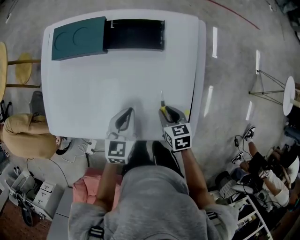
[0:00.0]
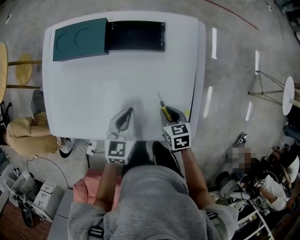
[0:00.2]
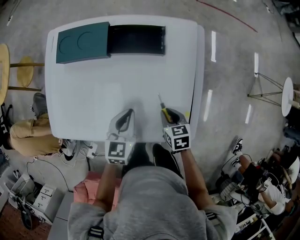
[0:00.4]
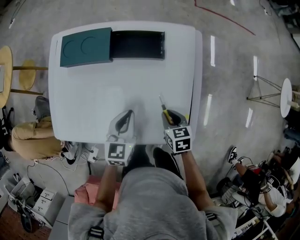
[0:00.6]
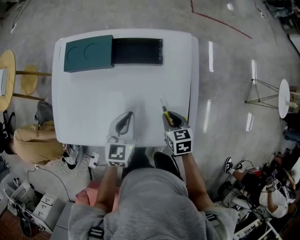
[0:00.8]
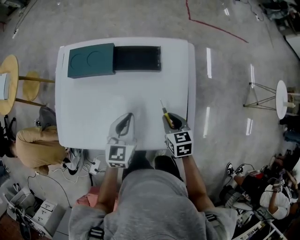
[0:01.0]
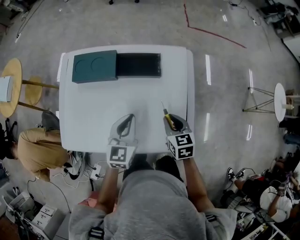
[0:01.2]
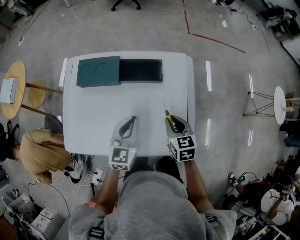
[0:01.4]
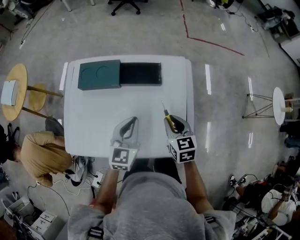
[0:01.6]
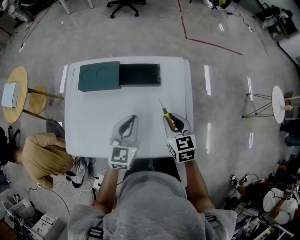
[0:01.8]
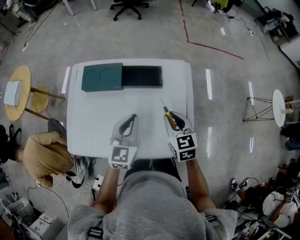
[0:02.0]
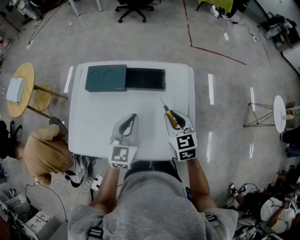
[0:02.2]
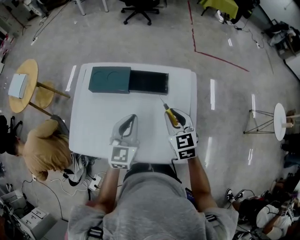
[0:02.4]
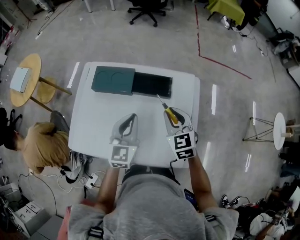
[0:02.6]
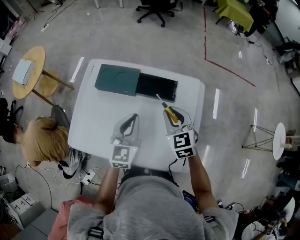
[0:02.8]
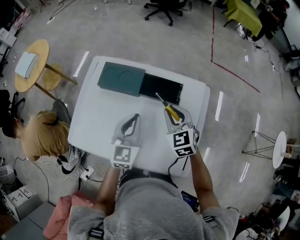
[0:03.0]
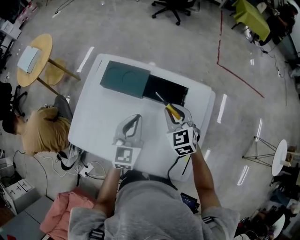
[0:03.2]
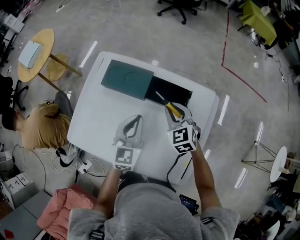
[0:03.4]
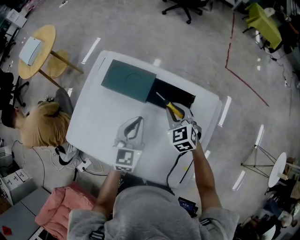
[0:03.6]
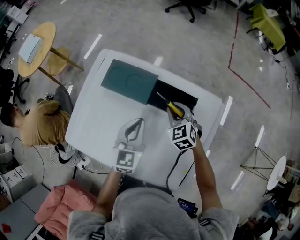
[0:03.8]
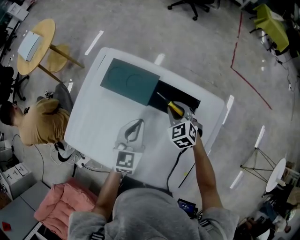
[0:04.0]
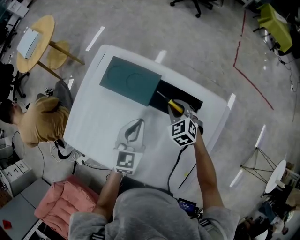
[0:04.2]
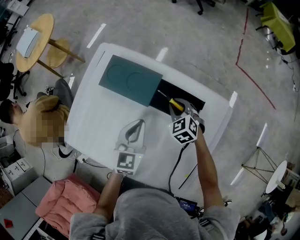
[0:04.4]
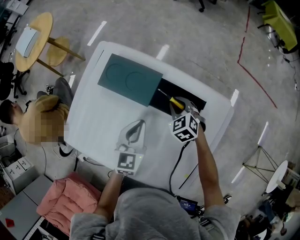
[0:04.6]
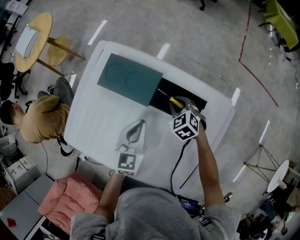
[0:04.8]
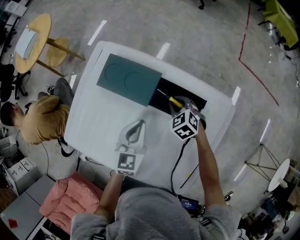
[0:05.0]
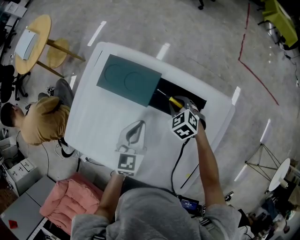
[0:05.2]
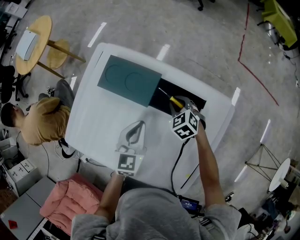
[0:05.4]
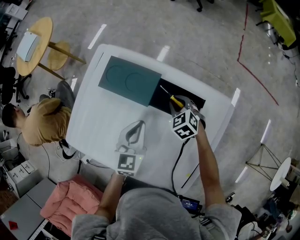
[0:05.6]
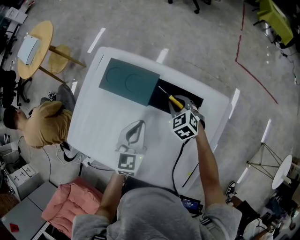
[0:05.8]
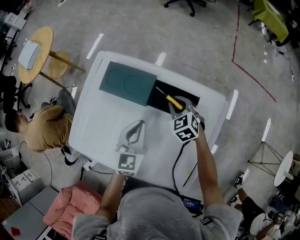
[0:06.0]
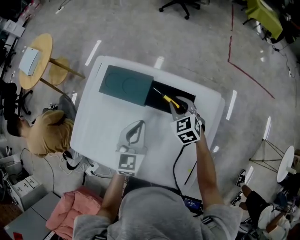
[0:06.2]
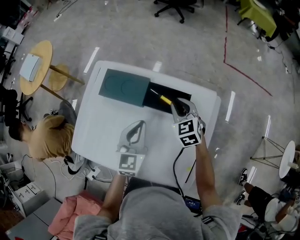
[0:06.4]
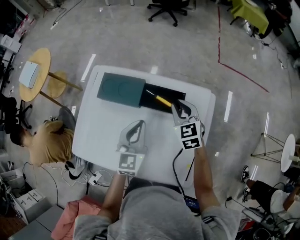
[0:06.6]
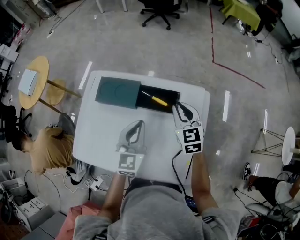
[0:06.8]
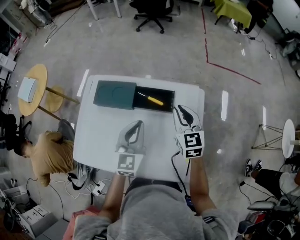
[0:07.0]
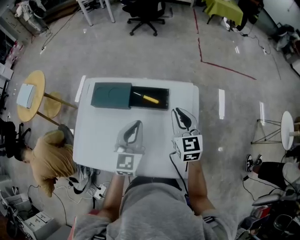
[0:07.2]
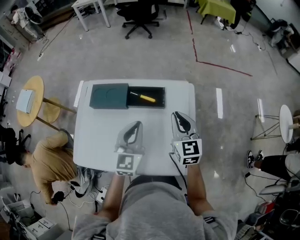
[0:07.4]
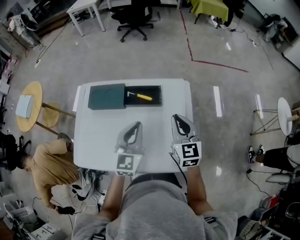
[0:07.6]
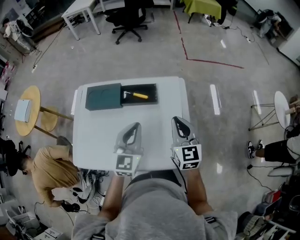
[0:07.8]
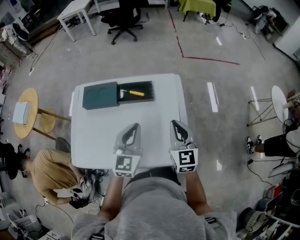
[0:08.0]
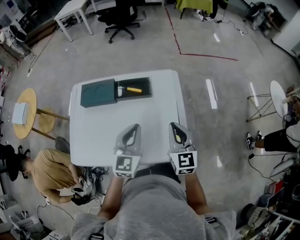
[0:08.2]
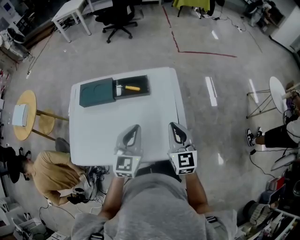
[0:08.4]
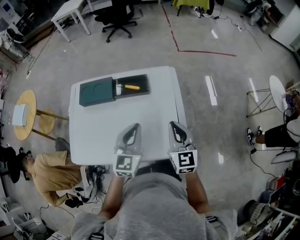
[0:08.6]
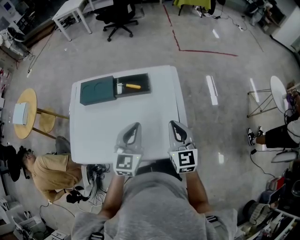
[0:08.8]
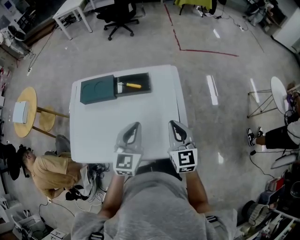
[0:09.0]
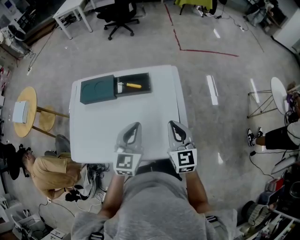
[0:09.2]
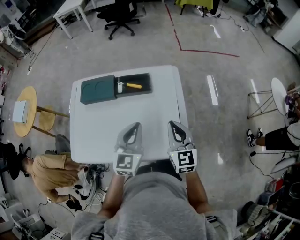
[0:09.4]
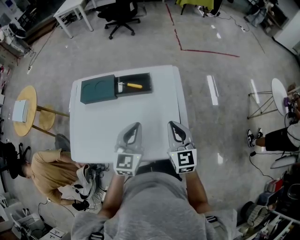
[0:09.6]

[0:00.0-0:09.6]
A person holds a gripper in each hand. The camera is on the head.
0:00.0 to 0:01.6: The two grippers go approximately 15 cm upward. The right gripper rotates roughly 20 degrees.
0:01.6 to 0:03.2: The right gripper travels forward and to the left by roughly 15 cm, and rotates about 40 degrees. Meanwhile the left gripper travels forward and to the left by roughly 10 cm.
0:03.2 to 0:04.8: The right gripper goes roughly 20 cm downward and forward, and swivels about 30 degrees. Meanwhile the left gripper is displaced downward and forward by roughly 15 cm.
0:04.8 to 0:06.4: The right gripper goes some 15 cm upward, and turns by about 30 degrees. Meanwhile the left gripper shifts roughly 10 cm upward.
0:06.4 to 0:08.0: The right gripper shifts some 30 cm backward, upward and to the right, and turns by about 40 degrees. The left gripper moves backward, to the right and upward, about 20 cm, and turns by approximately 20 degrees.
0:08.0 to 0:09.6: There are only small adjustments of the grippers.

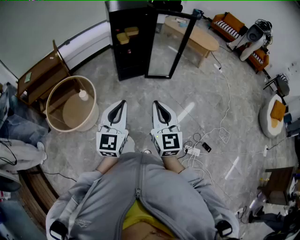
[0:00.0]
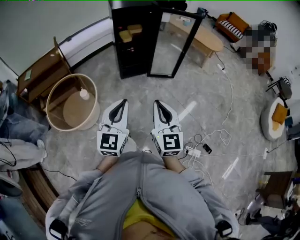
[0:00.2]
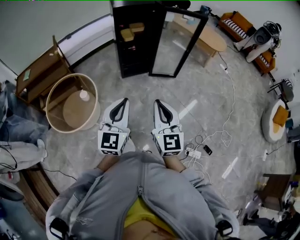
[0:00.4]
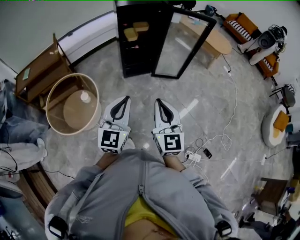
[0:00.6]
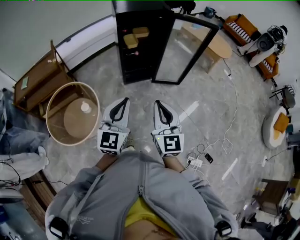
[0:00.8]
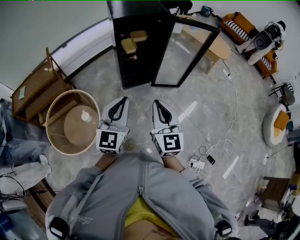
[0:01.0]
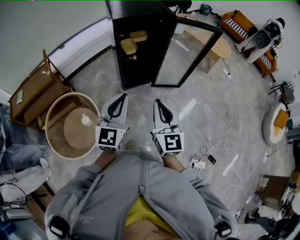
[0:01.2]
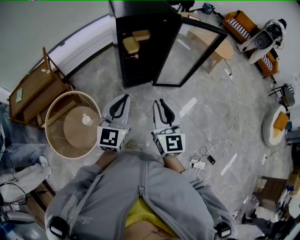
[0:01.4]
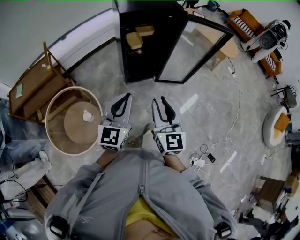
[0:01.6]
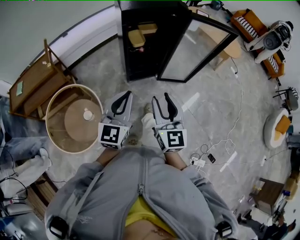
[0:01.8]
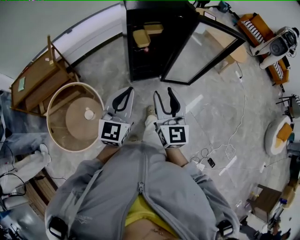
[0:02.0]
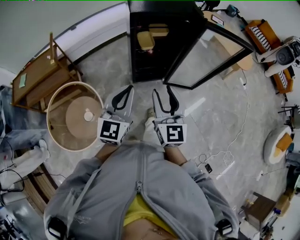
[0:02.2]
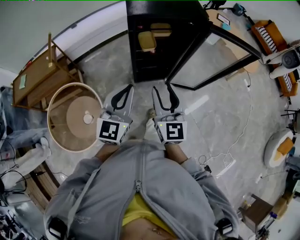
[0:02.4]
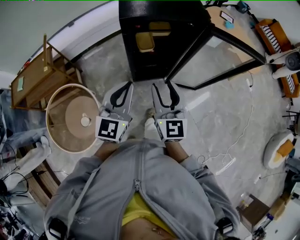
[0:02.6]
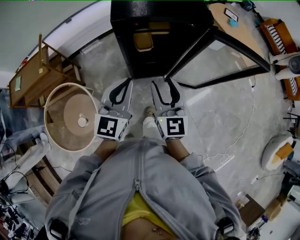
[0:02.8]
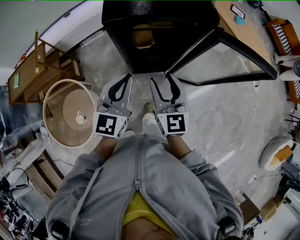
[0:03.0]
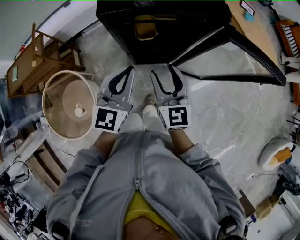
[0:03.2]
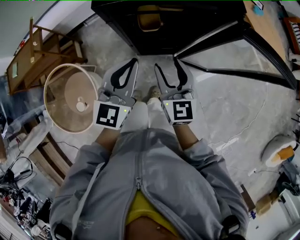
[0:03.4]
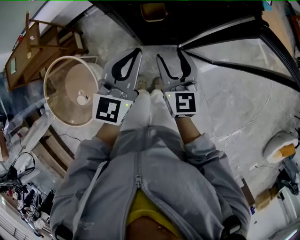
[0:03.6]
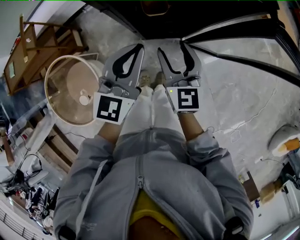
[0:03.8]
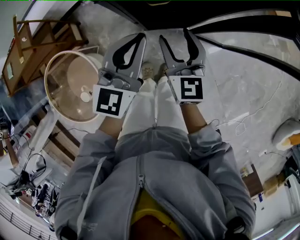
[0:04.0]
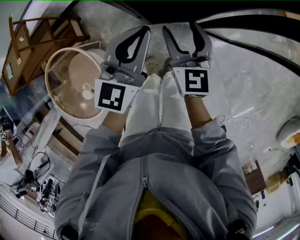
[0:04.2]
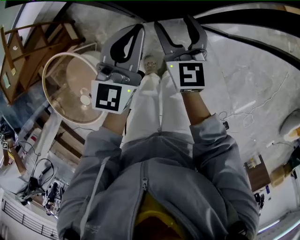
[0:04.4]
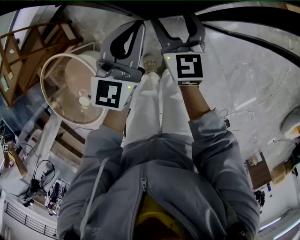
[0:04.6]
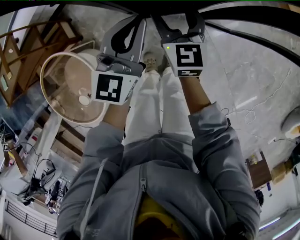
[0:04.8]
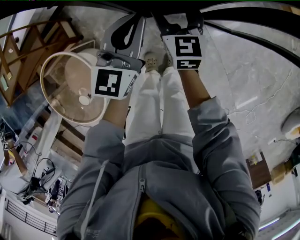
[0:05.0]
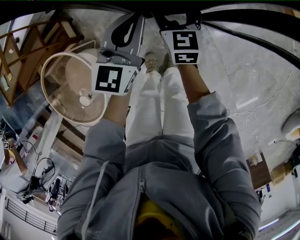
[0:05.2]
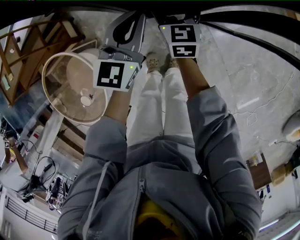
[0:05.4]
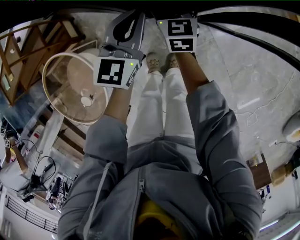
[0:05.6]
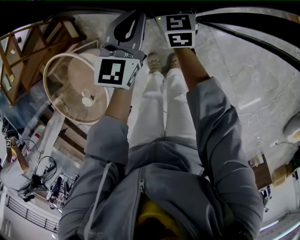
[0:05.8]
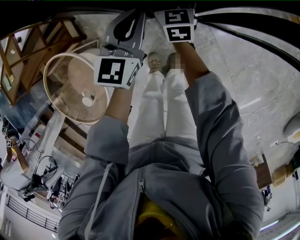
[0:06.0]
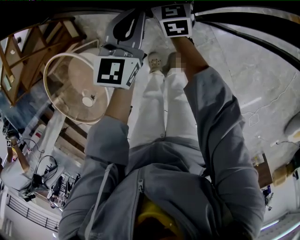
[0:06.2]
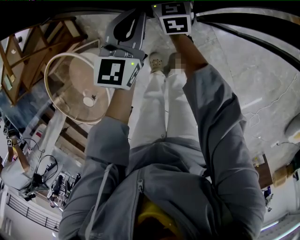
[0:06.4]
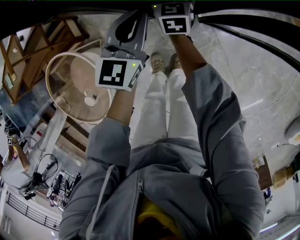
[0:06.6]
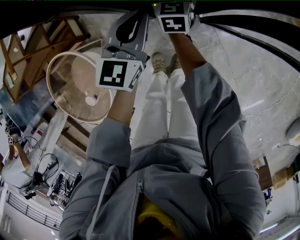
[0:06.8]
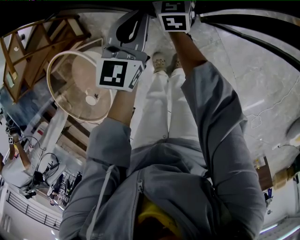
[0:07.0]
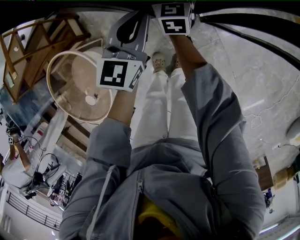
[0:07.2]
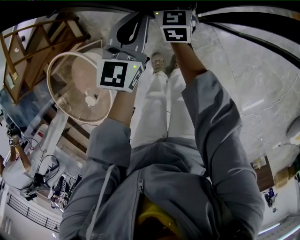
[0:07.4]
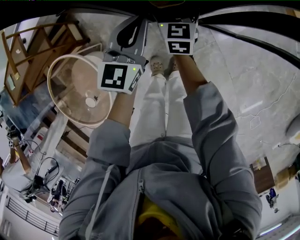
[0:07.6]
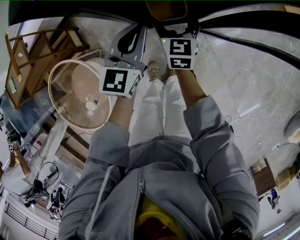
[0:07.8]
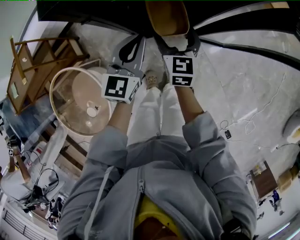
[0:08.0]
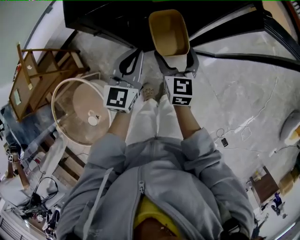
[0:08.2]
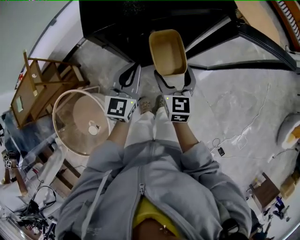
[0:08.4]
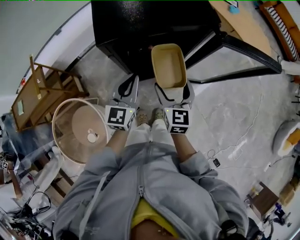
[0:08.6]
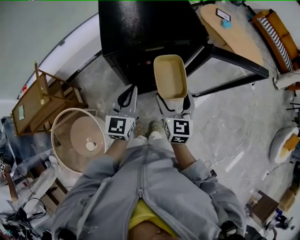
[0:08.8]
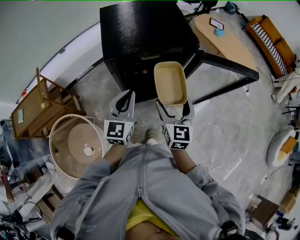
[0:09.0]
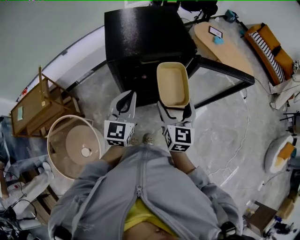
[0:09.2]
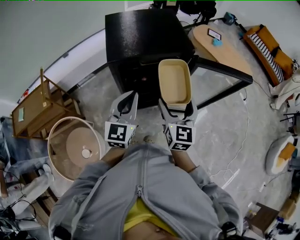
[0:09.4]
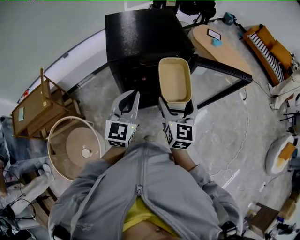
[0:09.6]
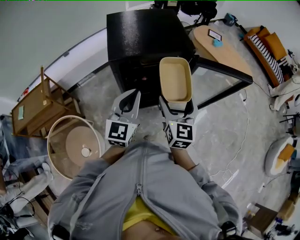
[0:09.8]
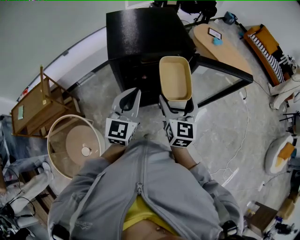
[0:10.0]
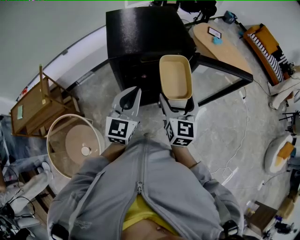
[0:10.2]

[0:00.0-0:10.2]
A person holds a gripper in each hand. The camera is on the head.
0:00.0 to 0:01.4: The two grippers go about 35 cm forward.
0:01.4 to 0:03.0: Both grippers travel together forward, about 35 cm.
0:03.0 to 0:04.4: The grippers both shift downward and forward by about 25 cm.
0:04.4 to 0:05.8: The right gripper shifts roughly 15 cm downward and forward, and opens up; the left gripper goes about 10 cm downward and forward.
0:05.8 to 0:07.2: The grippers move only a little.
0:07.2 to 0:08.8: The left gripper shifts about 25 cm upward; the right gripper shifts about 40 cm upward, backward and to the right.
0:08.8 to 0:10.2: Both grippers move upward, roughly 10 cm.

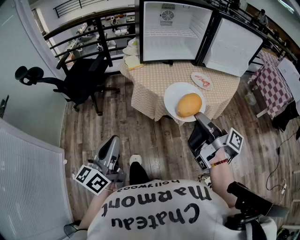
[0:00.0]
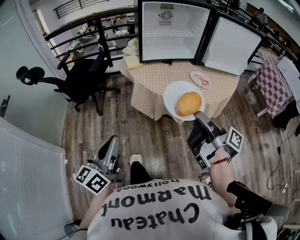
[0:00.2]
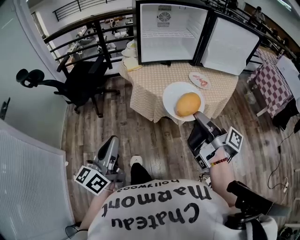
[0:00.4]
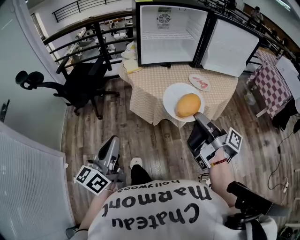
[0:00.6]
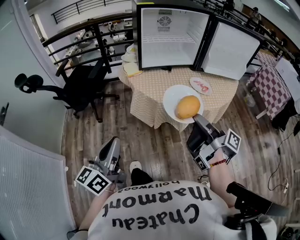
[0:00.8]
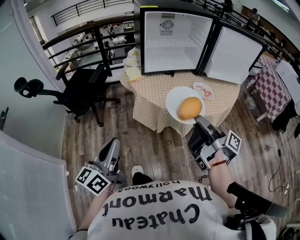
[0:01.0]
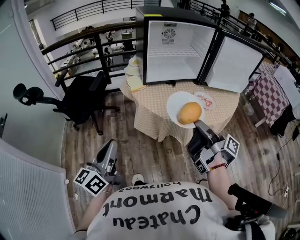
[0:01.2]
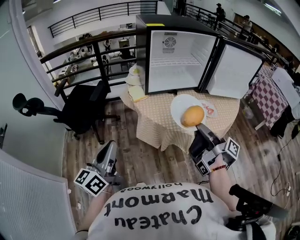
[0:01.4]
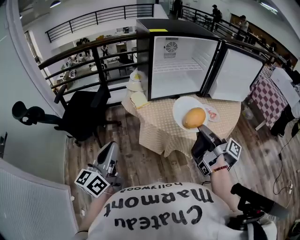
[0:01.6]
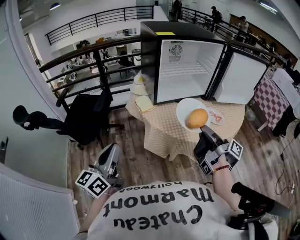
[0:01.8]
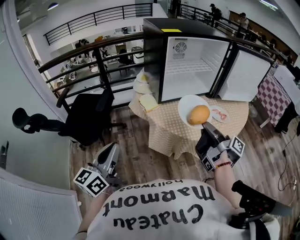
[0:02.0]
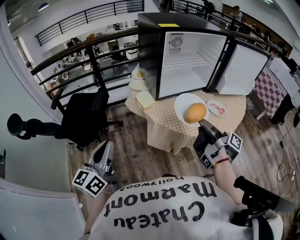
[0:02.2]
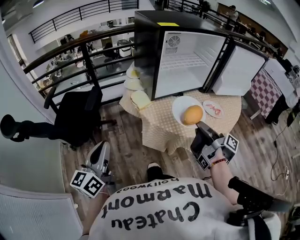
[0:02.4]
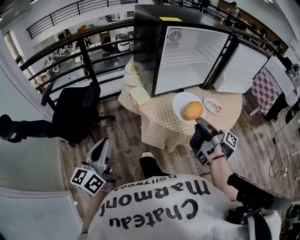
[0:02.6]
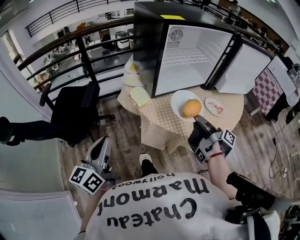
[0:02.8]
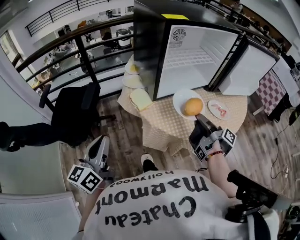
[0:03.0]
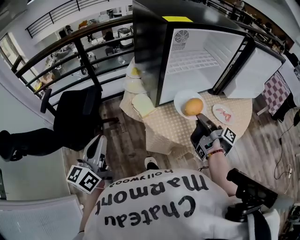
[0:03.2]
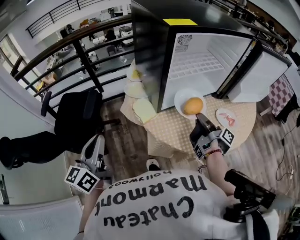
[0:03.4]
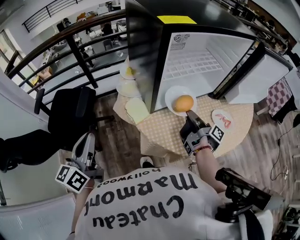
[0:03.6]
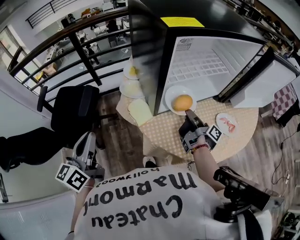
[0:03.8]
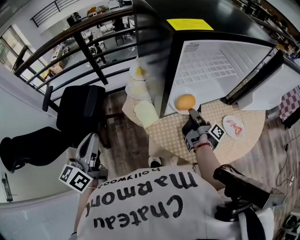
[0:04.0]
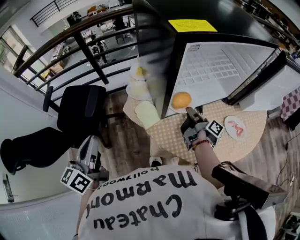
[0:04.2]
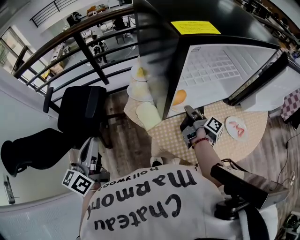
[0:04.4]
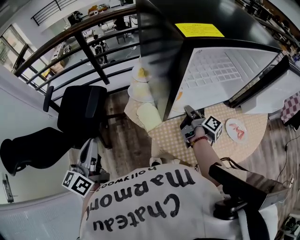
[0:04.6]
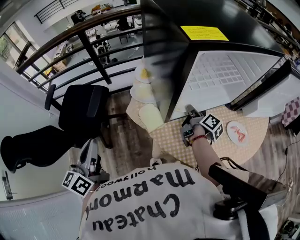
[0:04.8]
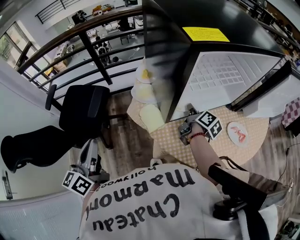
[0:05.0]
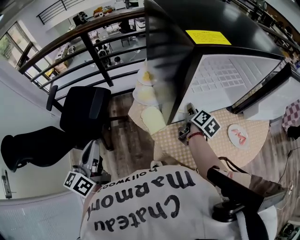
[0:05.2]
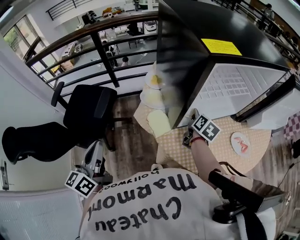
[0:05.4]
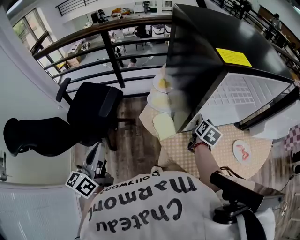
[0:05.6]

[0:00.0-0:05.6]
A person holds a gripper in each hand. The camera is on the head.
0:00.0 to 0:01.4: The right gripper goes roughly 10 cm forward. Meanwhile the left gripper moves forward and to the left, roughly 15 cm.
0:01.4 to 0:02.8: The right gripper heads forward, to the left and downward, covering roughly 15 cm. The left gripper goes roughly 20 cm forward and to the left.
0:02.8 to 0:04.2: The right gripper is displaced forward and downward by about 25 cm, while the left gripper heads forward, covering approximately 15 cm.
0:04.2 to 0:05.6: The left gripper changes place by roughly 5 cm. The right gripper travels forward by roughly 5 cm, rolls counterclockwise, seen from behind, by some 60 degrees, and opens its fingers.
